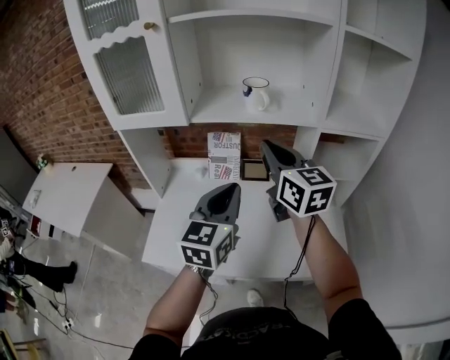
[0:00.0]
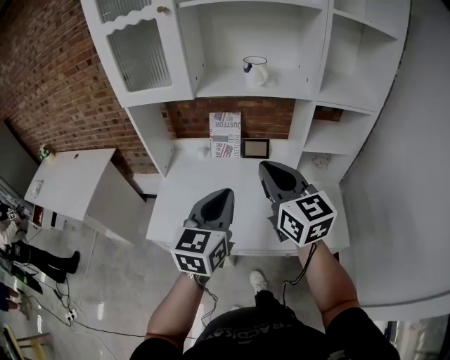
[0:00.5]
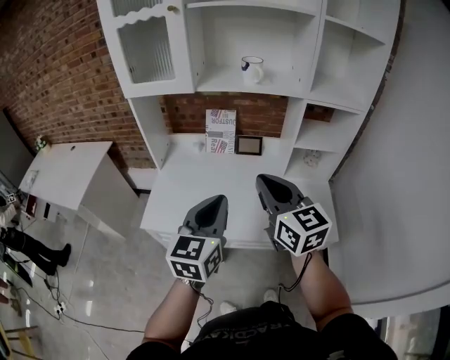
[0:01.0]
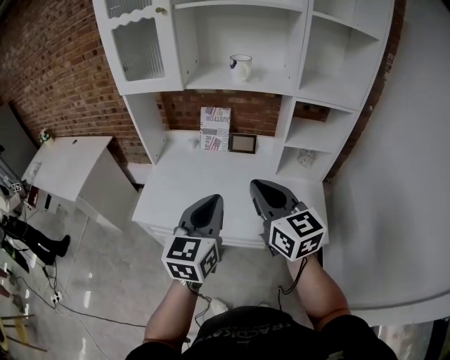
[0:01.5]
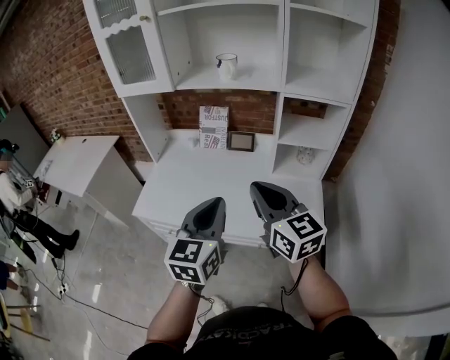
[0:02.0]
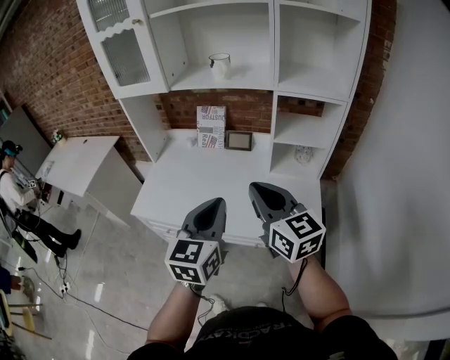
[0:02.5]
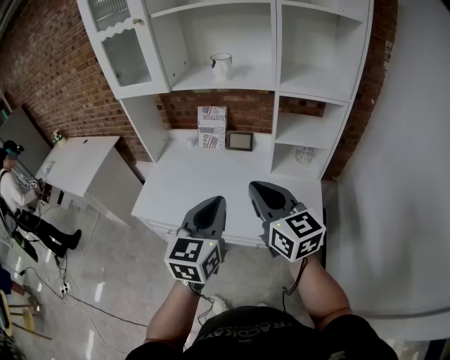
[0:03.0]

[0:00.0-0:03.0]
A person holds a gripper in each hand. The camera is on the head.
0:00.0 to 0:01.5: Both grippers move backward, some 20 cm.
0:01.5 to 0:03.0: The two grippers go approximately 10 cm to the right.

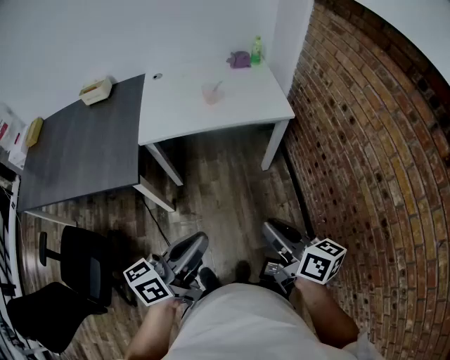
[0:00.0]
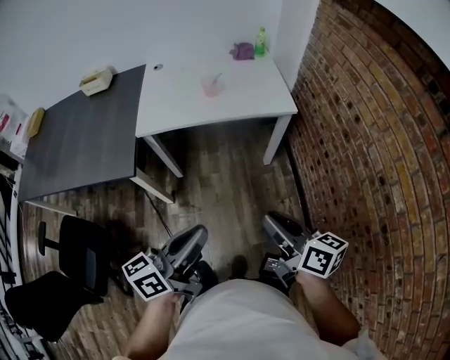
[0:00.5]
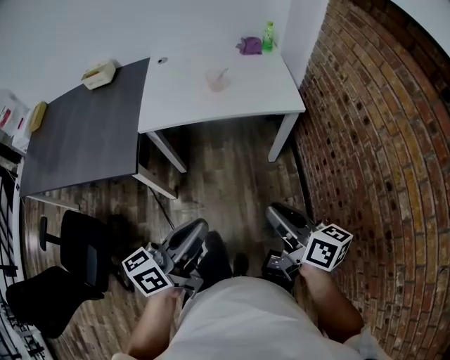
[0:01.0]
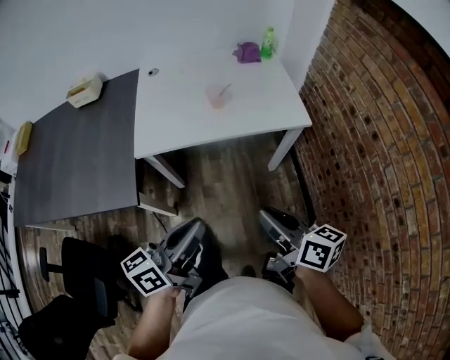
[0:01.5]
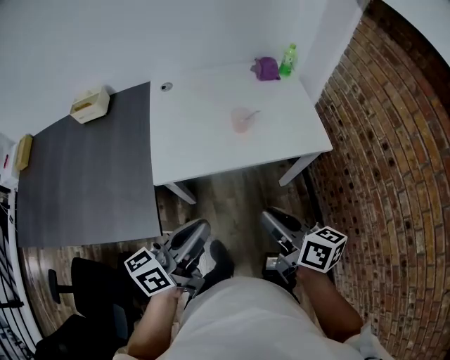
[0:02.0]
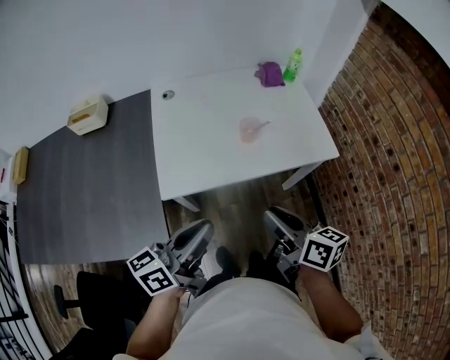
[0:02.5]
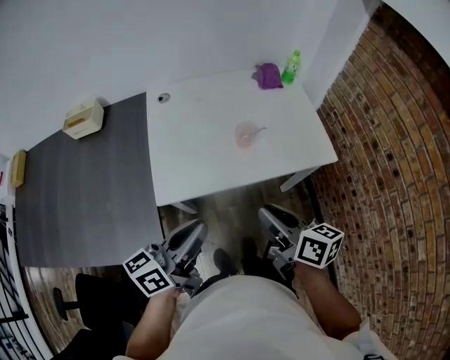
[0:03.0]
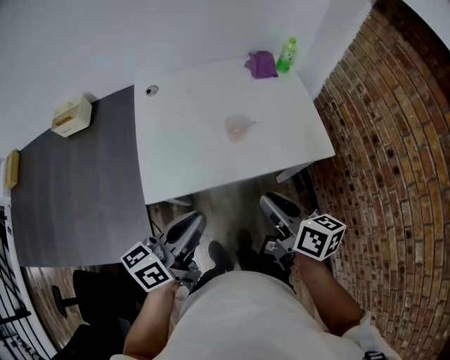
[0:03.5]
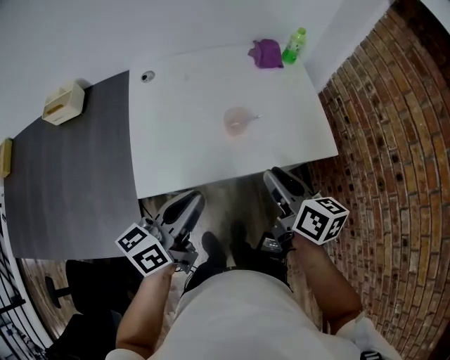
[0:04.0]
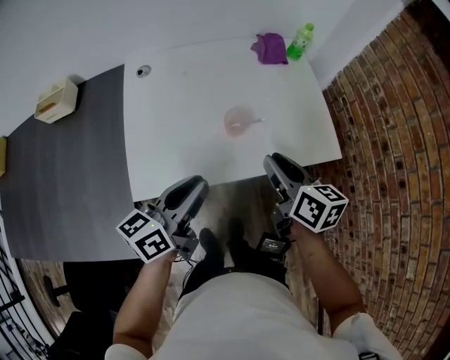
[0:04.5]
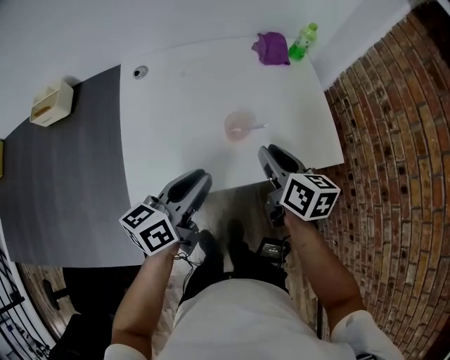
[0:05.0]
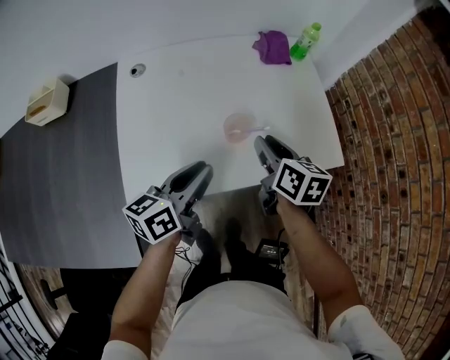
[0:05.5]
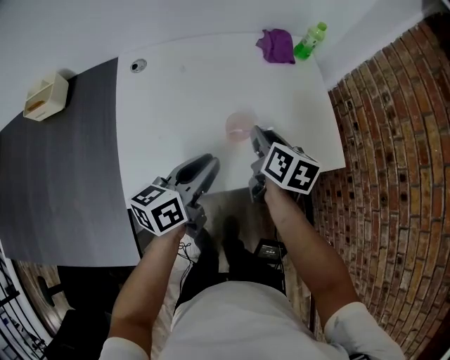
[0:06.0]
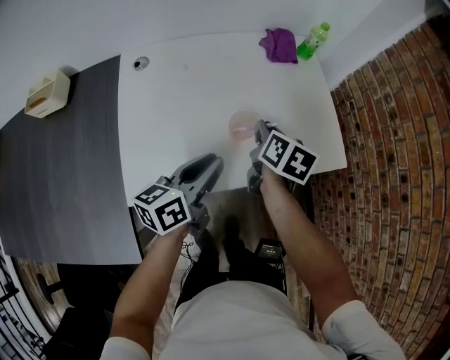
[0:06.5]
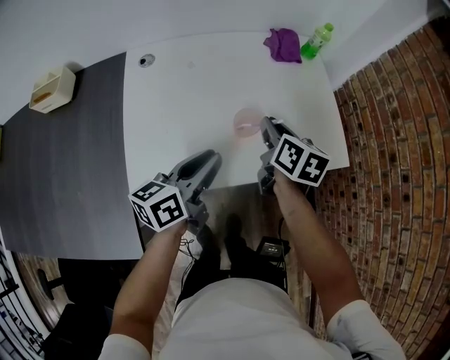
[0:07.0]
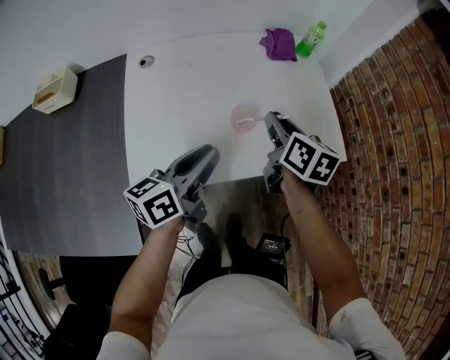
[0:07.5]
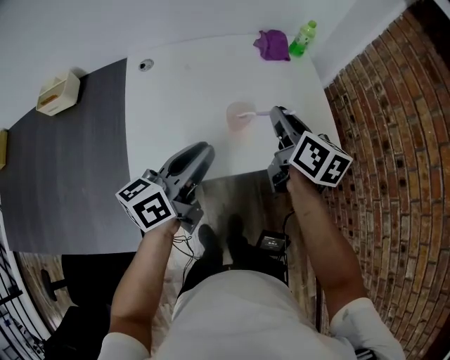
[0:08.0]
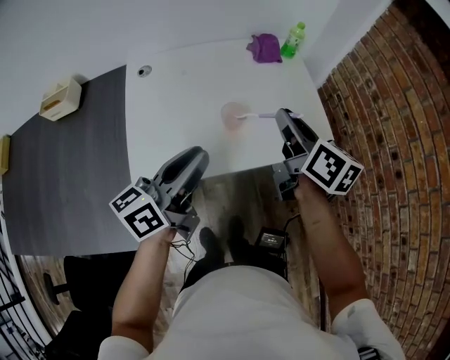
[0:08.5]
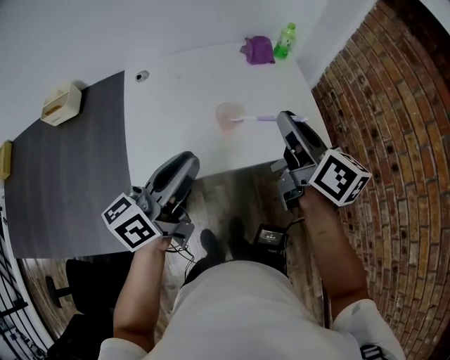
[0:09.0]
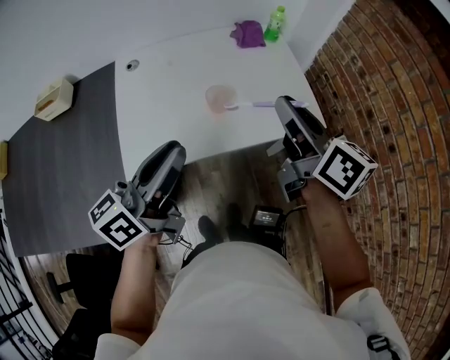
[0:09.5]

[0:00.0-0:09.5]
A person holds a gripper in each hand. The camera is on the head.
0:00.0 to 0:02.0: The two grippers go approximately 30 cm forward and to the left.
0:02.0 to 0:04.0: The two grippers go approximately 15 cm forward.
0:04.0 to 0:05.5: The grippers both shift forward and downward by some 15 cm.
0:05.5 to 0:07.5: The grippers move only a little.
0:07.5 to 0:09.5: The grippers both shift upward and backward by approximately 20 cm. The right gripper turns by some 20 degrees.

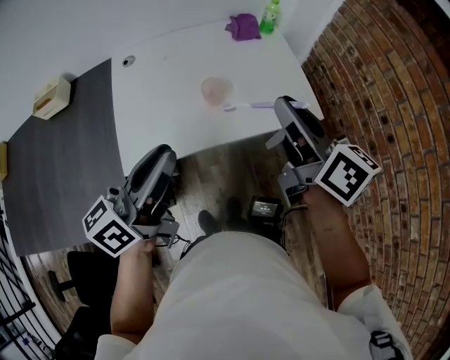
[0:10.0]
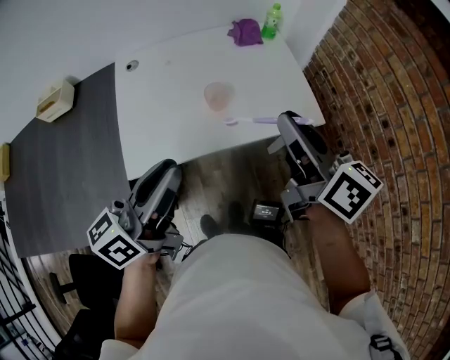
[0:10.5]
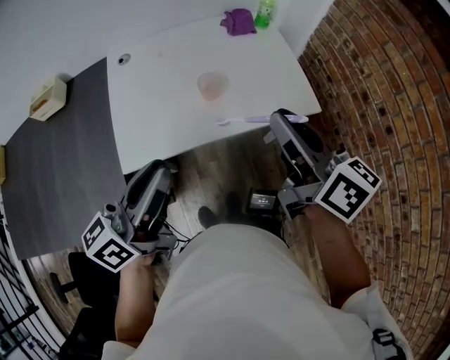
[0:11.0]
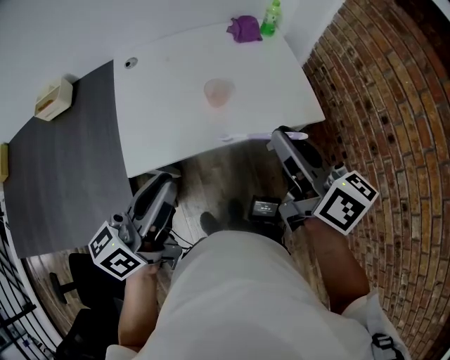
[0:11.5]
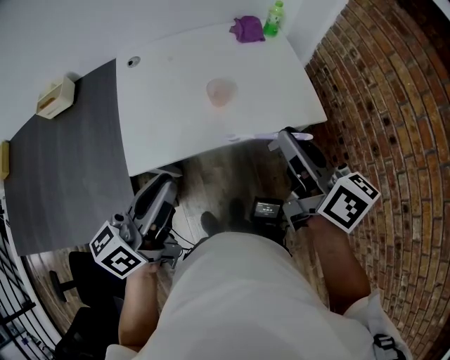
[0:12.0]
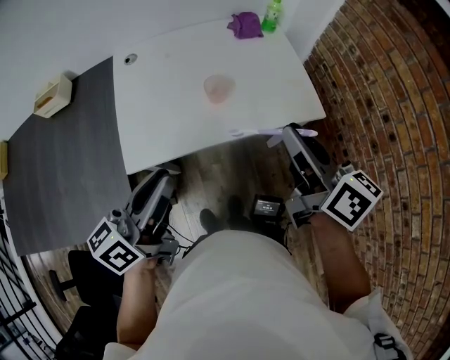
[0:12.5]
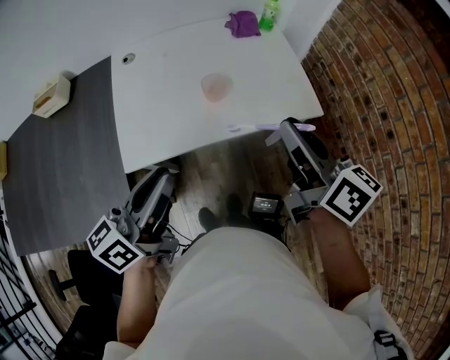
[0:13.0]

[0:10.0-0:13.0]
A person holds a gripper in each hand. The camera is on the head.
0:10.0 to 0:11.5: The right gripper travels backward by approximately 5 cm.
0:11.5 to 0:13.0: There are only small adjustments of the grippers.

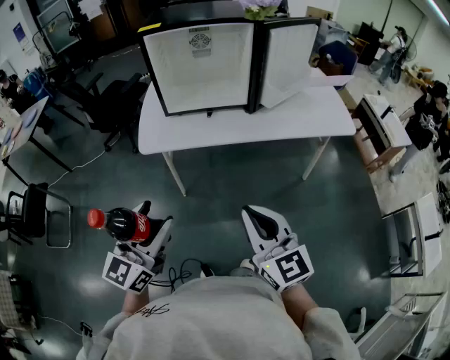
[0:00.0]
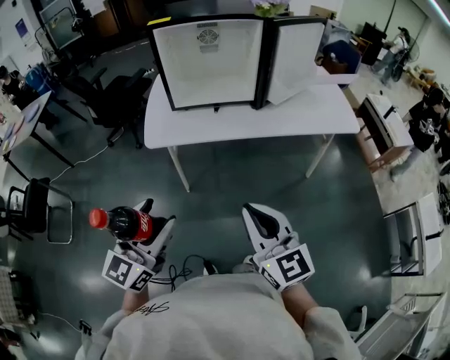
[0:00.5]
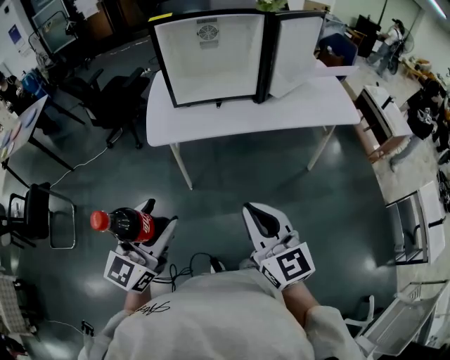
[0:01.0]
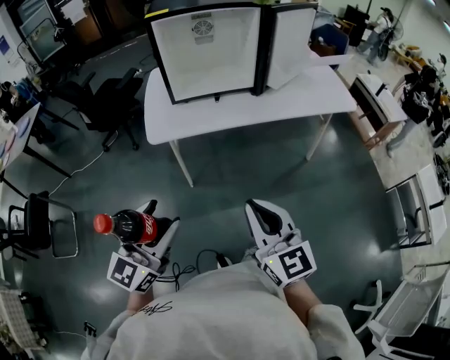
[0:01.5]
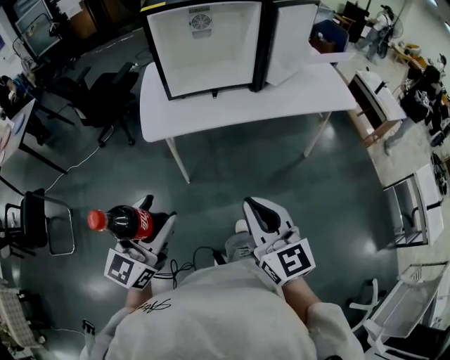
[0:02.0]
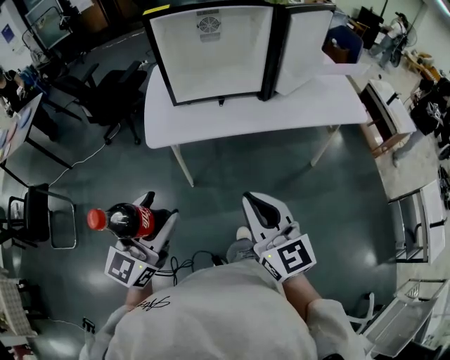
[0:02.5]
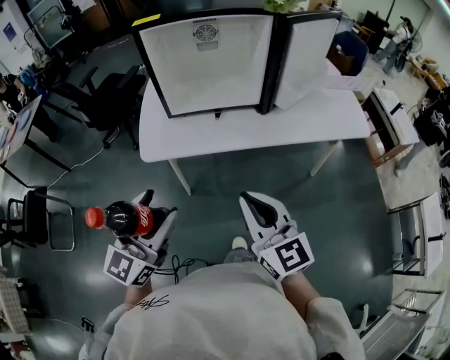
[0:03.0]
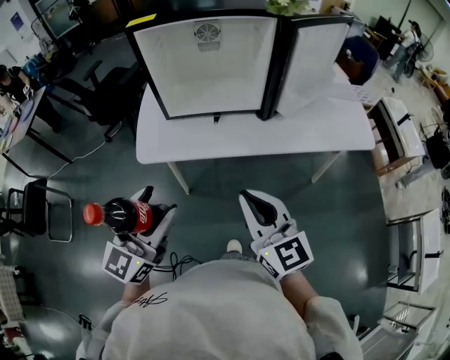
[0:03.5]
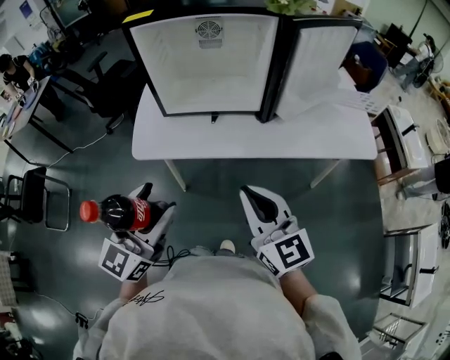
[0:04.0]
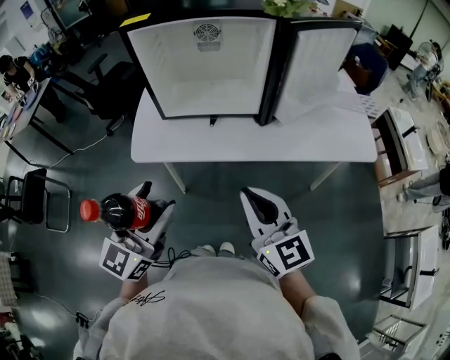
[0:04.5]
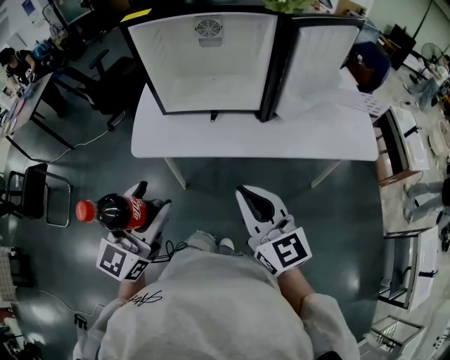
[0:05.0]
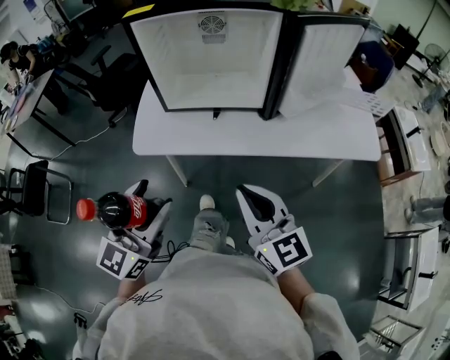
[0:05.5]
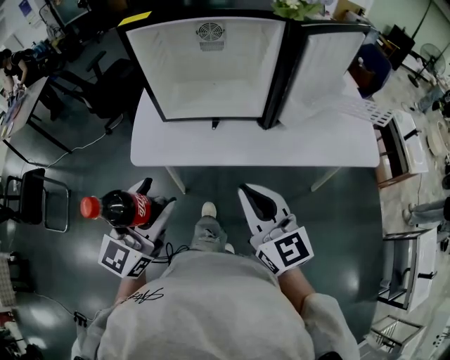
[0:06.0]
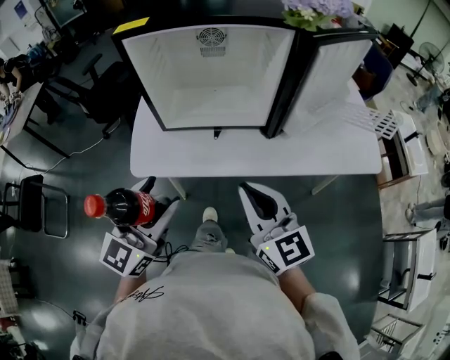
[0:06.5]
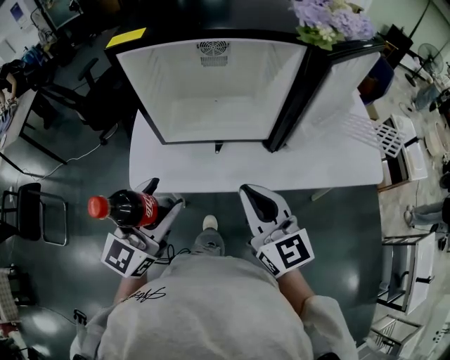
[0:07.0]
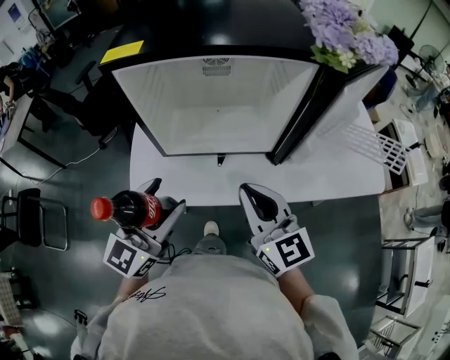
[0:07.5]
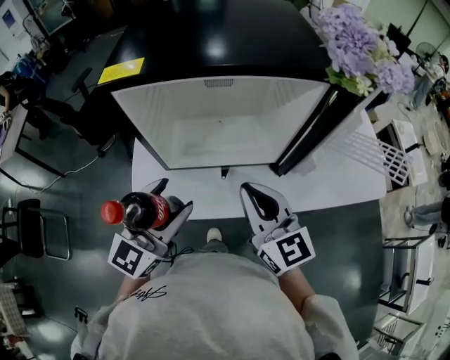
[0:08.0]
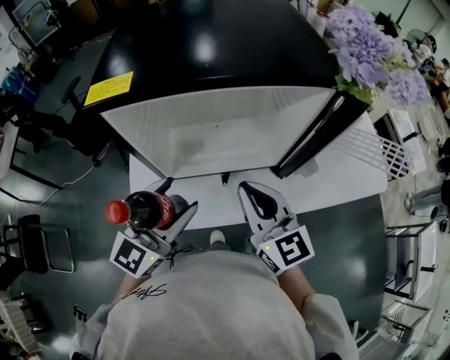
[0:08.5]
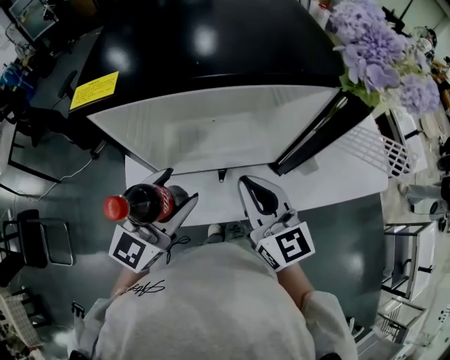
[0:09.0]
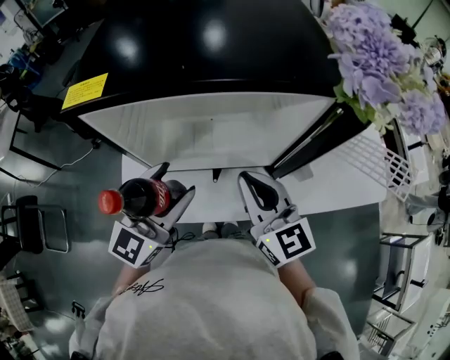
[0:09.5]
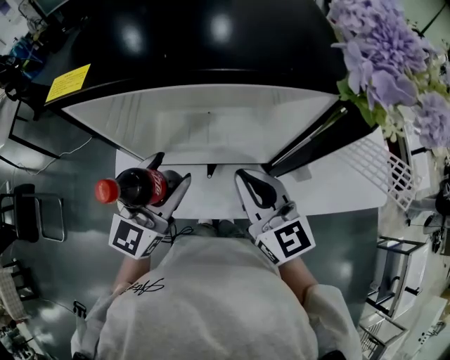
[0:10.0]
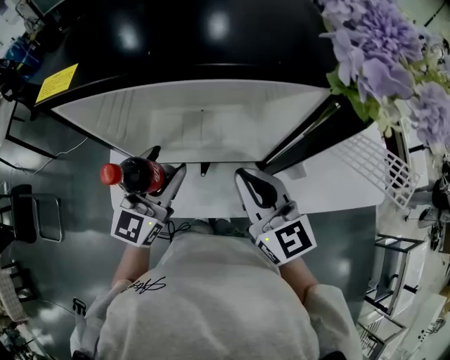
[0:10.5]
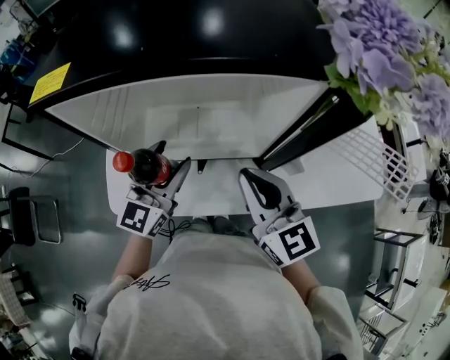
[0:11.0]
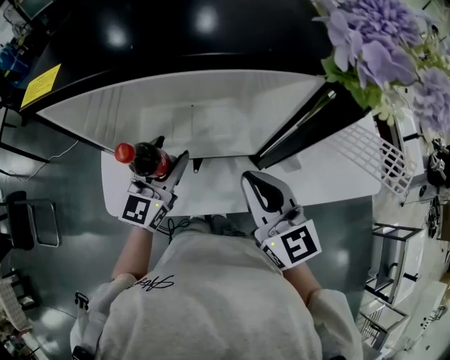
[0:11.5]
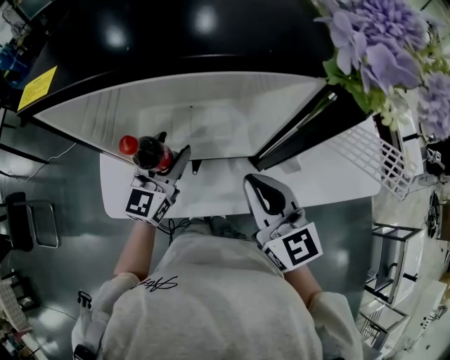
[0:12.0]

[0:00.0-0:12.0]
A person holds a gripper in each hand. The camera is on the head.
0:00.0 to 0:02.0: The two grippers go approximately 10 cm to the left.
0:02.0 to 0:04.0: Both grippers move forward and to the right, some 20 cm.
0:04.0 to 0:06.0: The grippers make only small movements.
0:06.0 to 0:08.0: Both grippers move forward, about 20 cm.
0:08.0 to 0:10.0: Both grippers travel together forward, roughly 10 cm.
0:10.0 to 0:12.0: The left gripper goes roughly 10 cm downward and forward. The right gripper moves about 5 cm.
